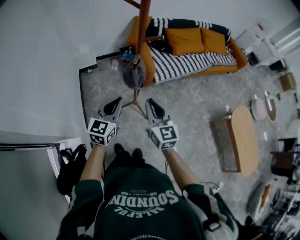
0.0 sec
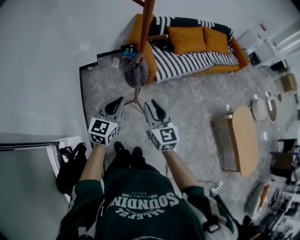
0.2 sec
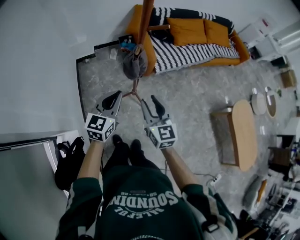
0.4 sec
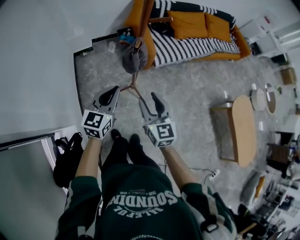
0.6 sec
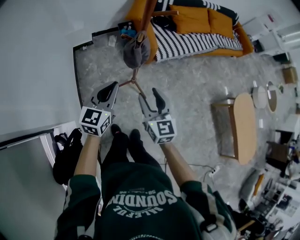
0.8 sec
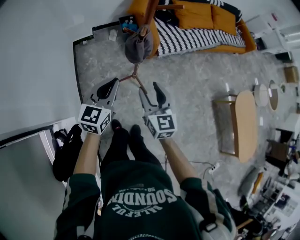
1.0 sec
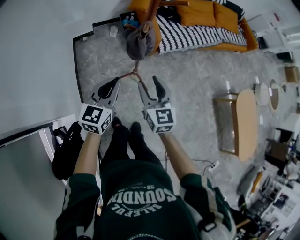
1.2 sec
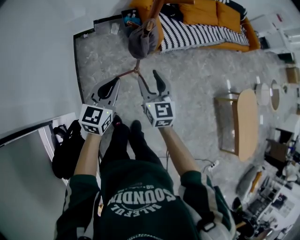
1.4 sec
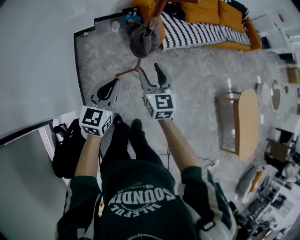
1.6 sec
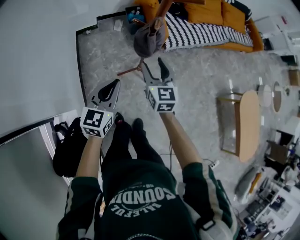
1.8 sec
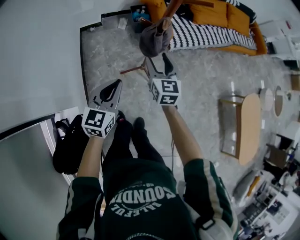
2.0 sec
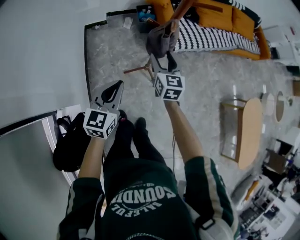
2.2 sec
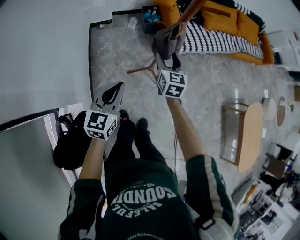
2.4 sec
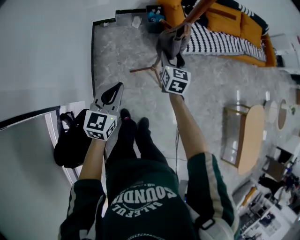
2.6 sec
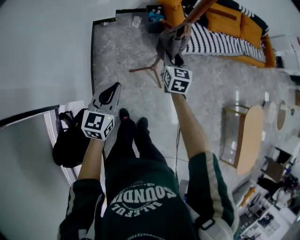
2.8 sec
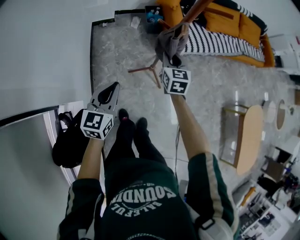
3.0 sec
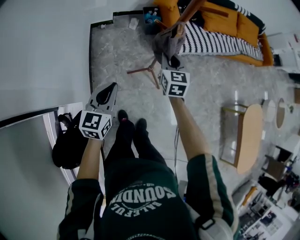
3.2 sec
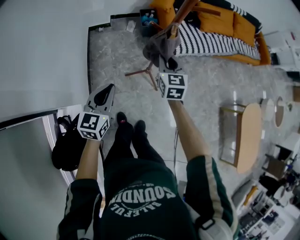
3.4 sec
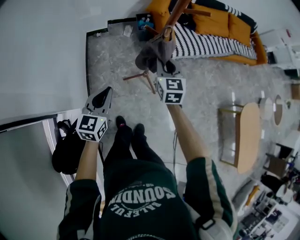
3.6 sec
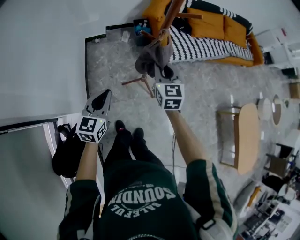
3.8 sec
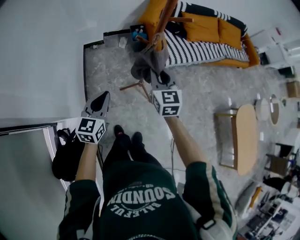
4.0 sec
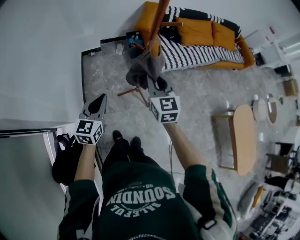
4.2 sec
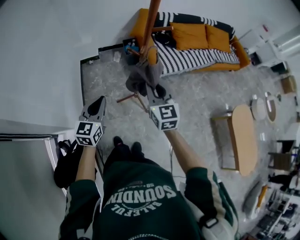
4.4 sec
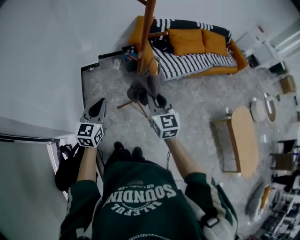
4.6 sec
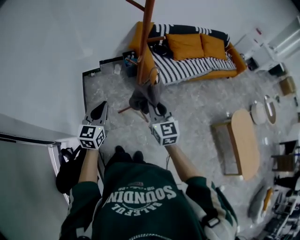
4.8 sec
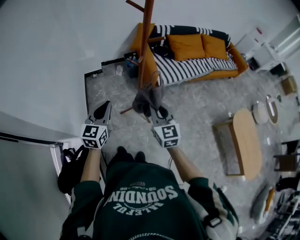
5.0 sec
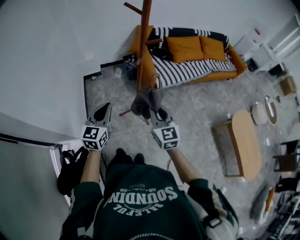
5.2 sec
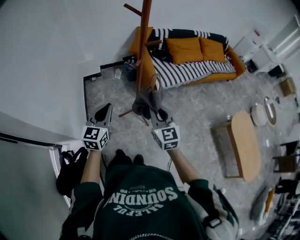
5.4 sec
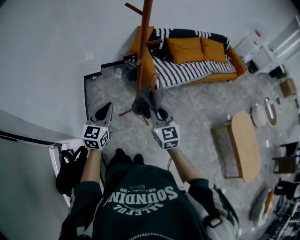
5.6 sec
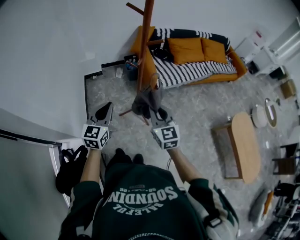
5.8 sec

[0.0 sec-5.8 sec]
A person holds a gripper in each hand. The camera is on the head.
0.0 sec to 1.4 sec: The grippers both shift downward by approximately 10 cm. The right gripper opens its fingers.
1.4 sec to 2.8 sec: The left gripper goes some 10 cm to the left, while the right gripper goes roughly 15 cm forward and downward, and closes up.
2.8 sec to 4.4 sec: The left gripper goes roughly 10 cm upward, while the right gripper travels upward and backward by some 25 cm.
4.4 sec to 5.8 sec: The left gripper changes place by approximately 5 cm. The right gripper travels backward by about 10 cm.

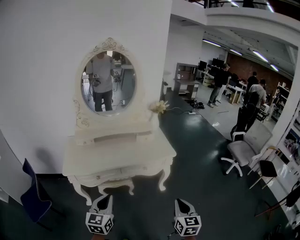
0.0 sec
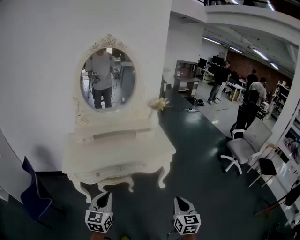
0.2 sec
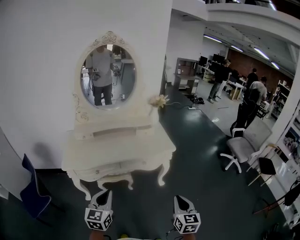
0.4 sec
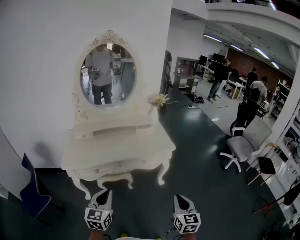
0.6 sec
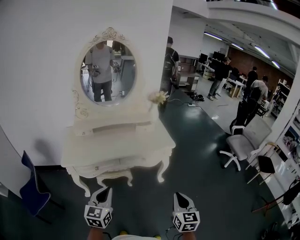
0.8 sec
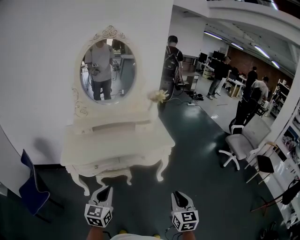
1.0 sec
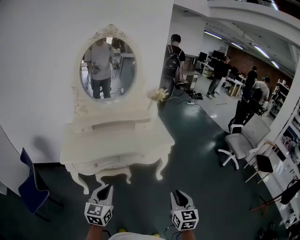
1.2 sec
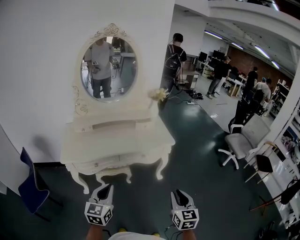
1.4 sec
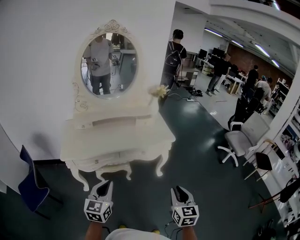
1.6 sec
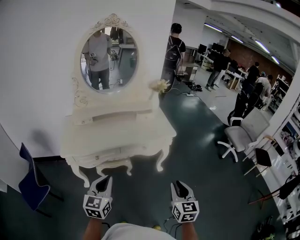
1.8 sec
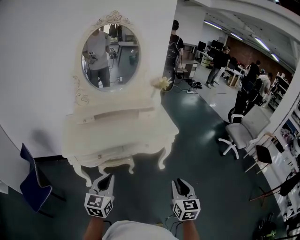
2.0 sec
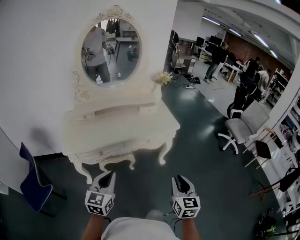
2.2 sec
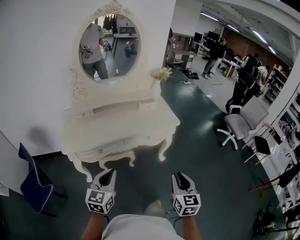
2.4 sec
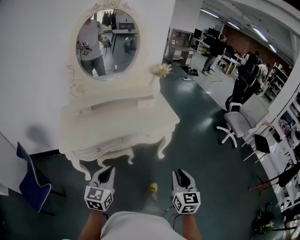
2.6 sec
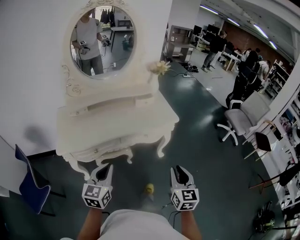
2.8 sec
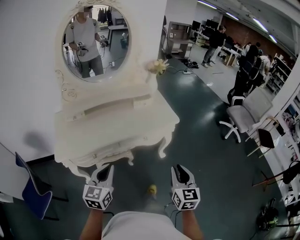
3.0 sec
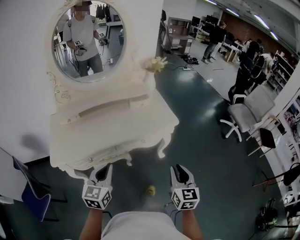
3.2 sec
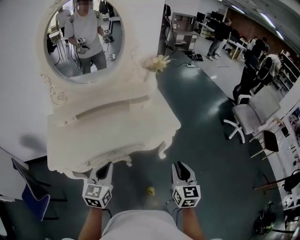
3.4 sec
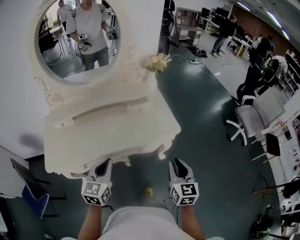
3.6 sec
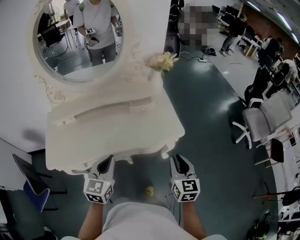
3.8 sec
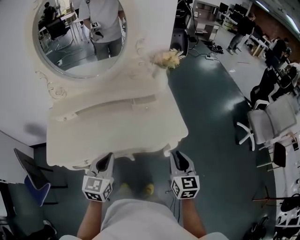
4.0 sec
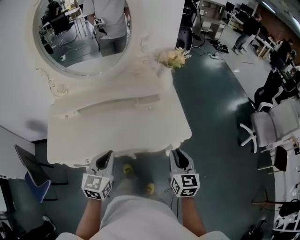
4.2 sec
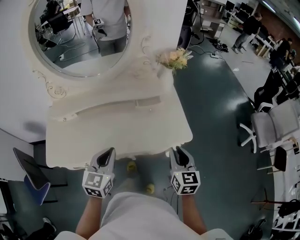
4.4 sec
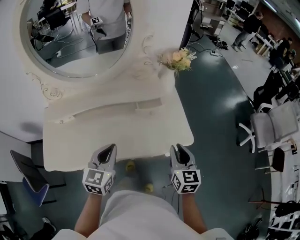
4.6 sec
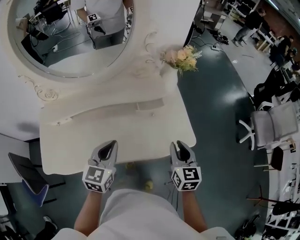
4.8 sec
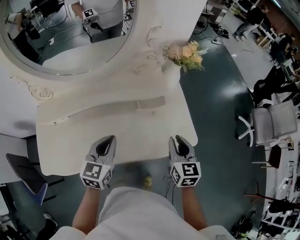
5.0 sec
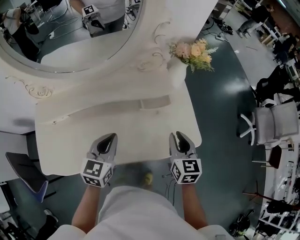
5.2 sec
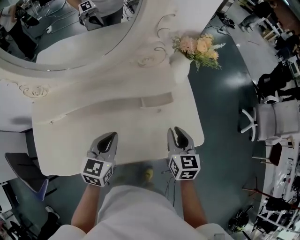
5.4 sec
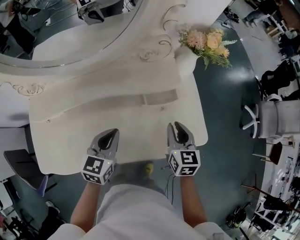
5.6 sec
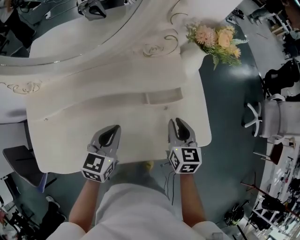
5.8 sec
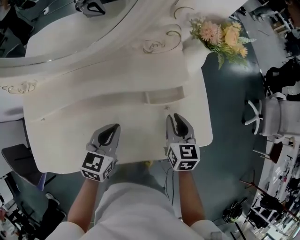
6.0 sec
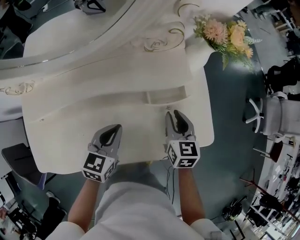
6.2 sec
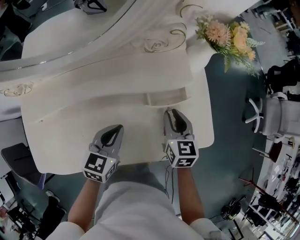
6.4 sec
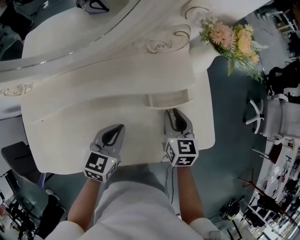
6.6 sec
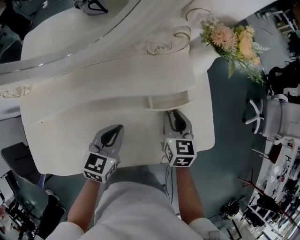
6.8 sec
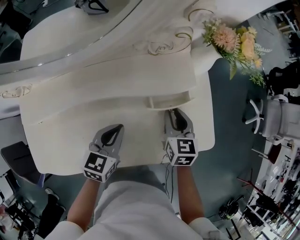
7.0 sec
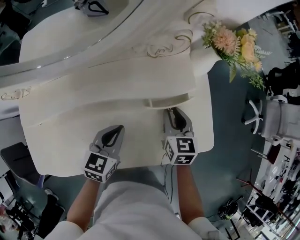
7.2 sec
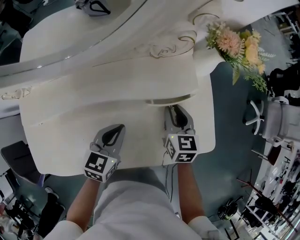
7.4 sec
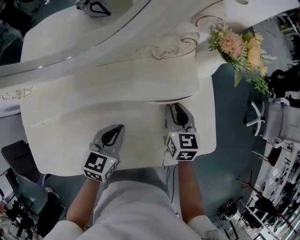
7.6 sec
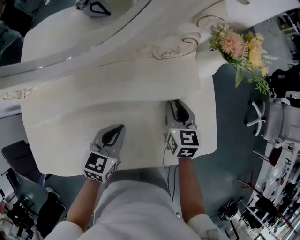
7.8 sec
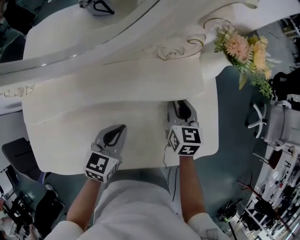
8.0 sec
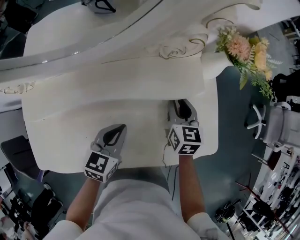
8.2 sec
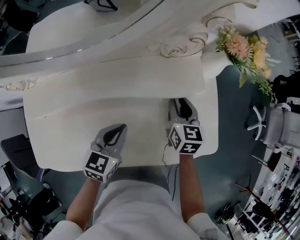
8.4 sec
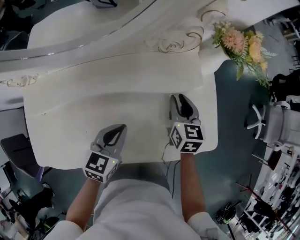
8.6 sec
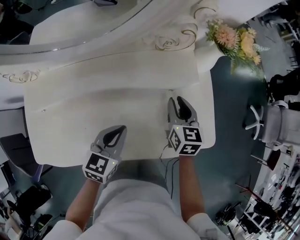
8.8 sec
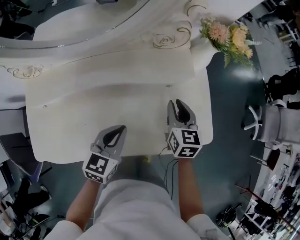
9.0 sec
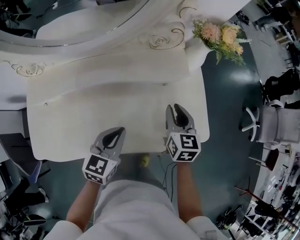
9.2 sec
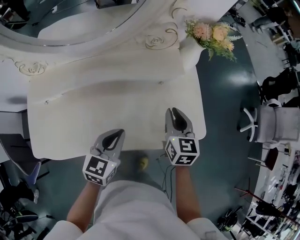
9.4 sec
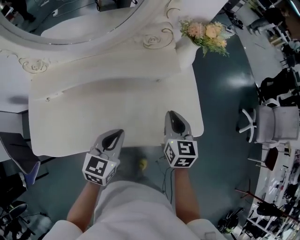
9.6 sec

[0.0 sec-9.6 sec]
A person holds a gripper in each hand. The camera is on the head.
0.0 sec to 1.6 sec: The grippers move only a little.
1.6 sec to 3.2 sec: Both grippers travel together forward, some 20 cm.
3.2 sec to 4.8 sec: The two grippers go roughly 35 cm forward.
4.8 sec to 6.4 sec: The right gripper moves forward, downward and to the left, approximately 20 cm, while the left gripper goes approximately 15 cm downward and forward.
6.4 sec to 8.0 sec: The right gripper shifts about 10 cm forward.
8.0 sec to 9.6 sec: Both grippers travel together backward, upward and to the right, roughly 15 cm.

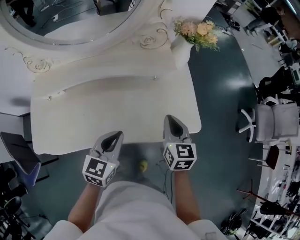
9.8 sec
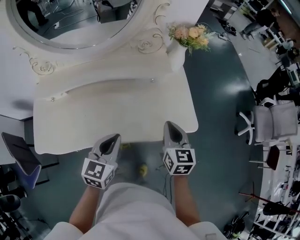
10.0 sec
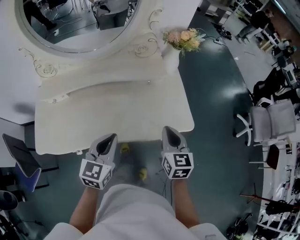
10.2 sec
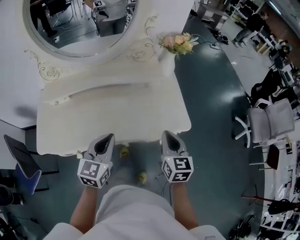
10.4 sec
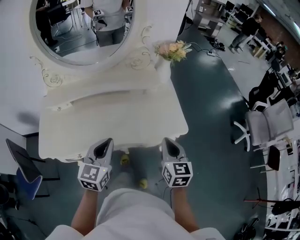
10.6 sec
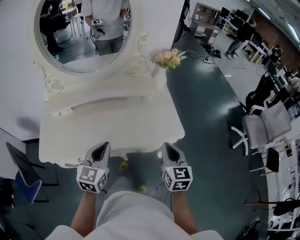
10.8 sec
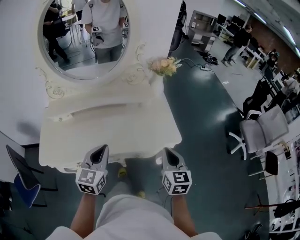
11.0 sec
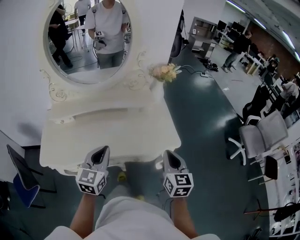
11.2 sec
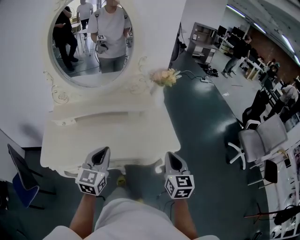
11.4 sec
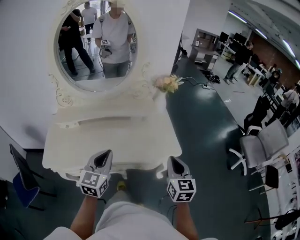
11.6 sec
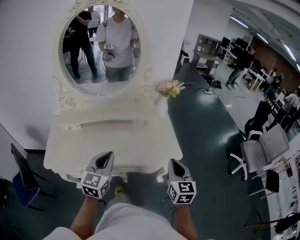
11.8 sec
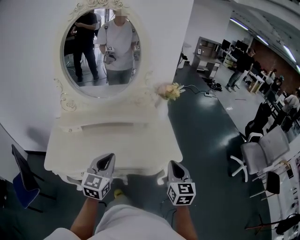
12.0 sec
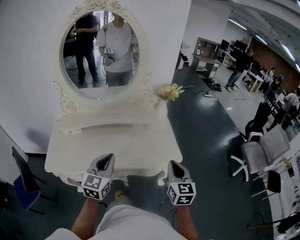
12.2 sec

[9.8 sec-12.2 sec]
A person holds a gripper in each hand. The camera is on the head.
9.8 sec to 11.0 sec: The right gripper moves backward, upward and to the right, approximately 20 cm; the left gripper shifts some 15 cm upward and backward.
11.0 sec to 12.2 sec: The right gripper moves roughly 5 cm. The left gripper changes place by approximately 5 cm.

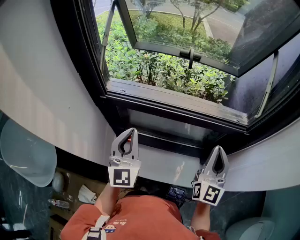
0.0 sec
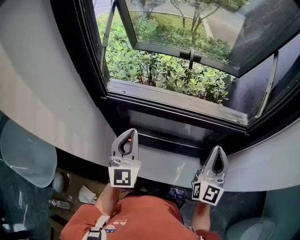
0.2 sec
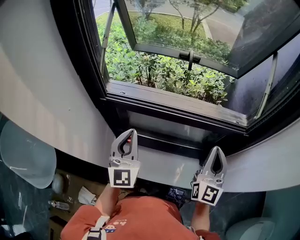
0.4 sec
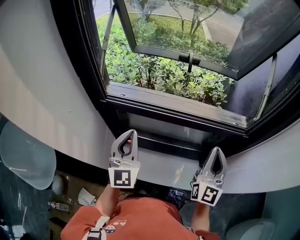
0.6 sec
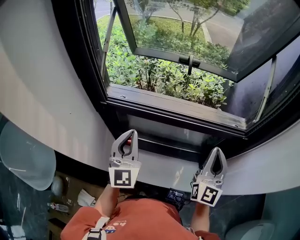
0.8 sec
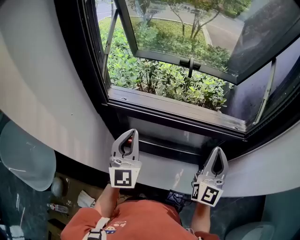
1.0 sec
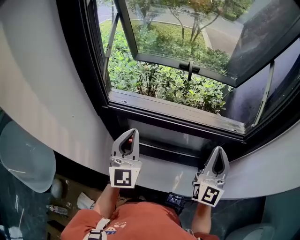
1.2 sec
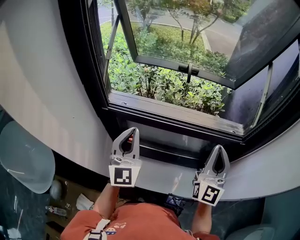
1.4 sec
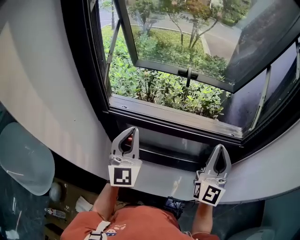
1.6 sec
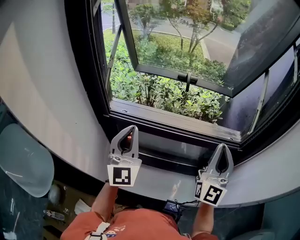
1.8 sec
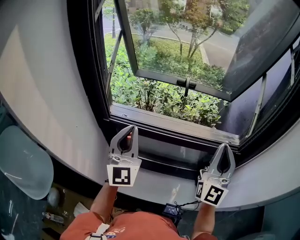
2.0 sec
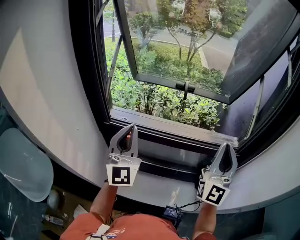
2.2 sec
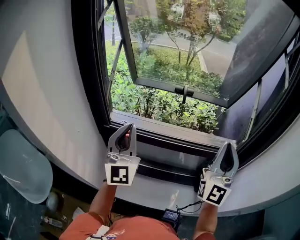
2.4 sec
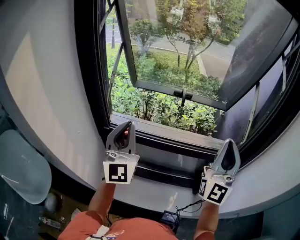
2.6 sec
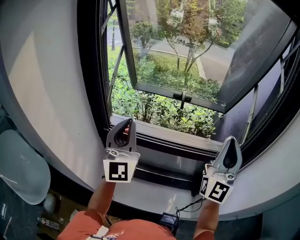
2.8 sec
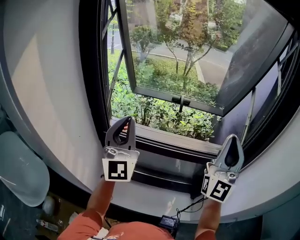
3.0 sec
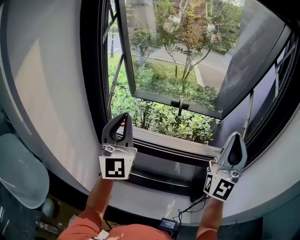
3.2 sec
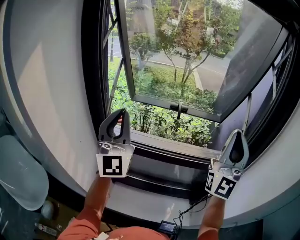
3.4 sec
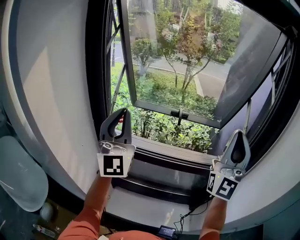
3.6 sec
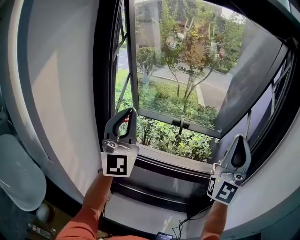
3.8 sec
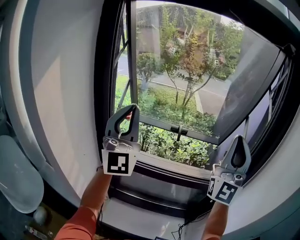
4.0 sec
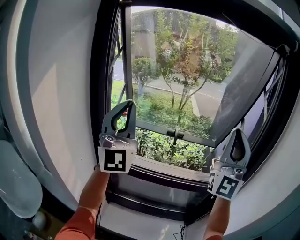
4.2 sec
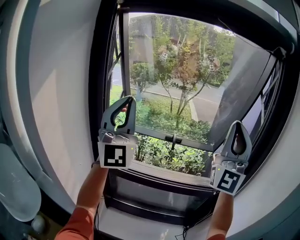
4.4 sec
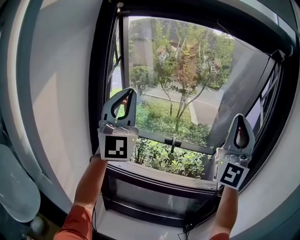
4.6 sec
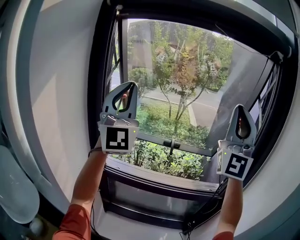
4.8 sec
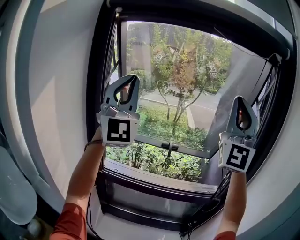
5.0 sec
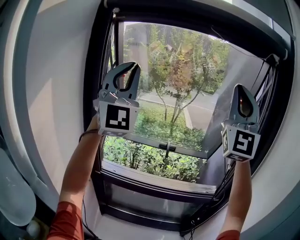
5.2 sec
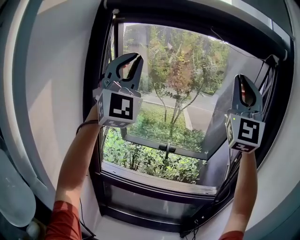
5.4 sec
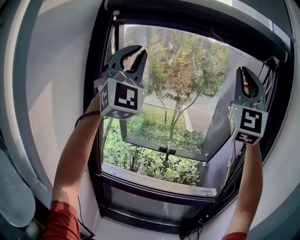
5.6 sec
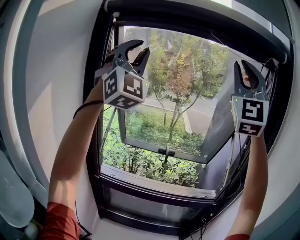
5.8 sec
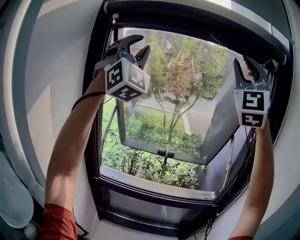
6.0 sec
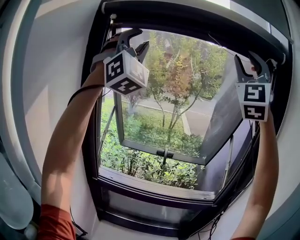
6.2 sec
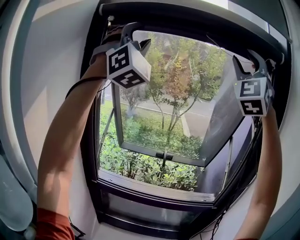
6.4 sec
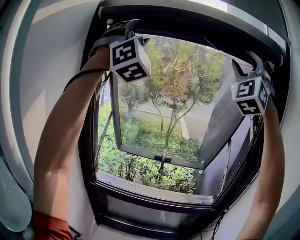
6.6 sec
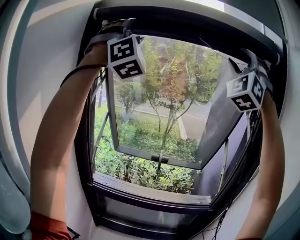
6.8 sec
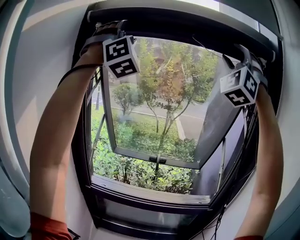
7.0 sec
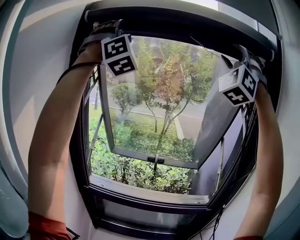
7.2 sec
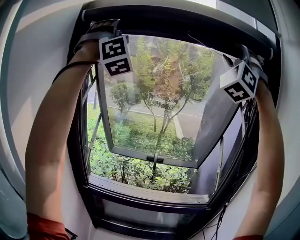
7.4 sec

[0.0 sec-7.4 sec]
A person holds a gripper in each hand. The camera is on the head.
0.0 sec to 1.4 sec: The right gripper shifts by roughly 5 cm.
1.4 sec to 3.0 sec: The grippers both shift upward by about 15 cm. The right gripper turns by some 20 degrees, while the left gripper turns by approximately 20 degrees.
3.0 sec to 4.4 sec: The two grippers go about 20 cm upward.
4.4 sec to 6.0 sec: The two grippers go approximately 20 cm upward. The right gripper swivels some 20 degrees, and opens its fingers, while the left gripper rotates roughly 40 degrees, and opens up.
6.0 sec to 7.4 sec: The right gripper moves forward and to the right, roughly 10 cm, swivels roughly 30 degrees, and opens up. The left gripper is displaced upward by some 5 cm, swivels some 30 degrees, and opens its fingers.
